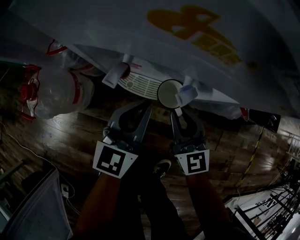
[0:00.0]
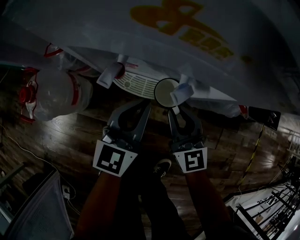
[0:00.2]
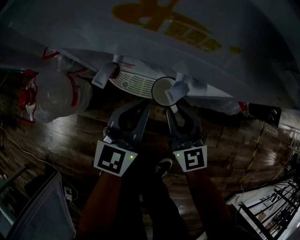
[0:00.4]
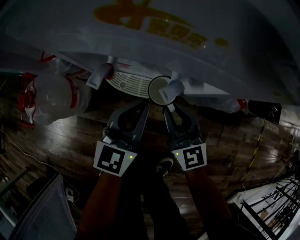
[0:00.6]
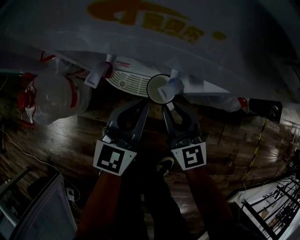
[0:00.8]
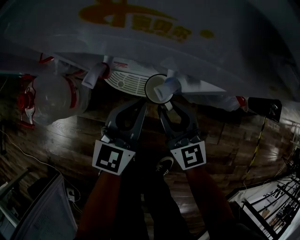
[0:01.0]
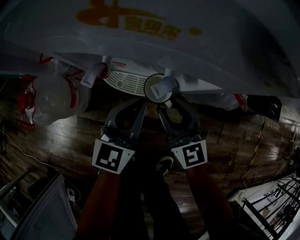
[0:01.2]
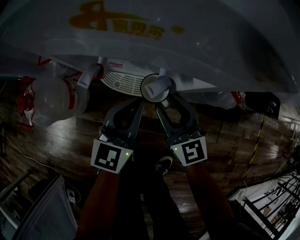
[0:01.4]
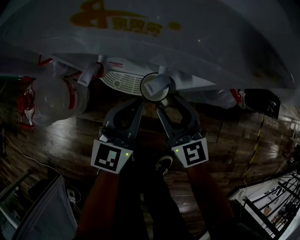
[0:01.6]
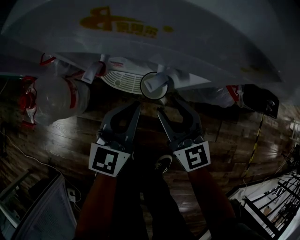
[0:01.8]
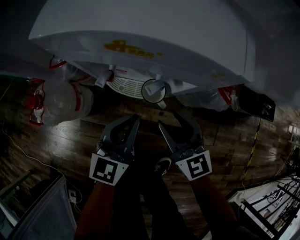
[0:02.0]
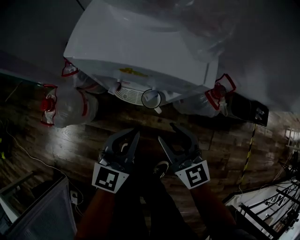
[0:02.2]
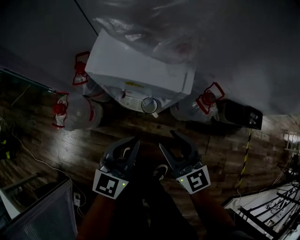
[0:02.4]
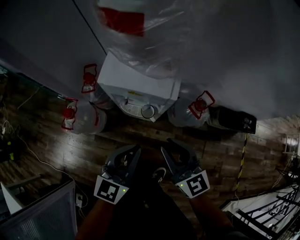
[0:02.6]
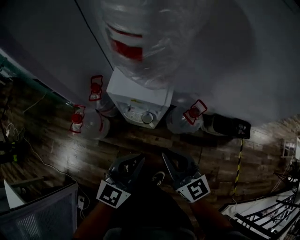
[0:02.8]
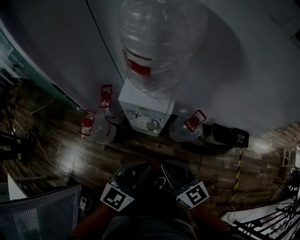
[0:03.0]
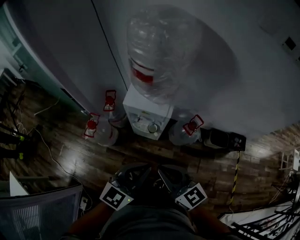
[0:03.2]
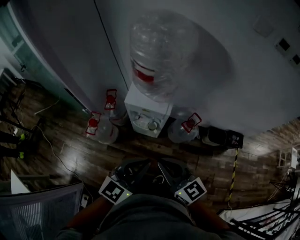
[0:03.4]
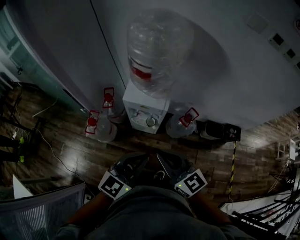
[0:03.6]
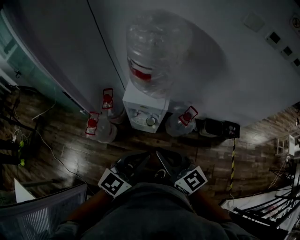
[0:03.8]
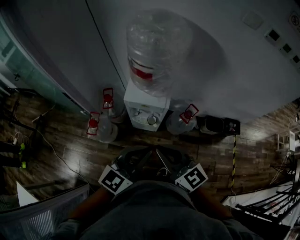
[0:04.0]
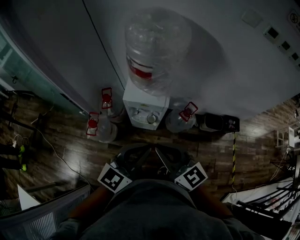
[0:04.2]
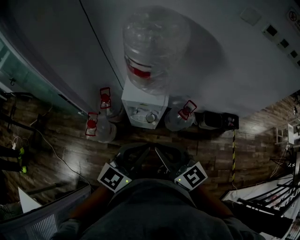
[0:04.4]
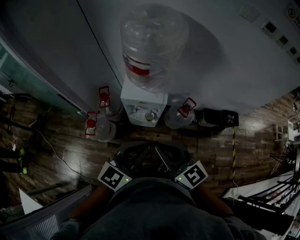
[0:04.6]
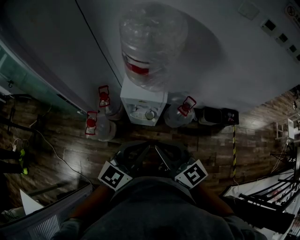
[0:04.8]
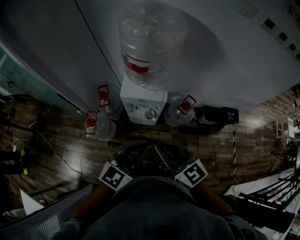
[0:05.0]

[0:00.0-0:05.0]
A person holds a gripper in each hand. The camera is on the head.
0:00.0 to 0:01.6: The right gripper opens up.
0:01.6 to 0:03.4: Both grippers travel together upward and backward, roughly 60 cm. The right gripper closes its fingers.
0:03.4 to 0:05.0: The right gripper changes place by some 5 cm.

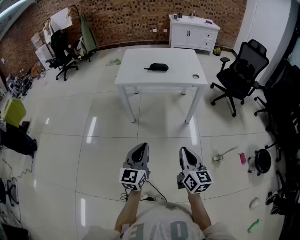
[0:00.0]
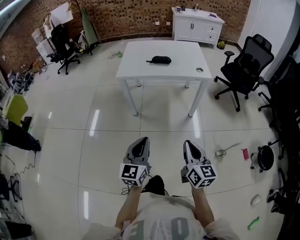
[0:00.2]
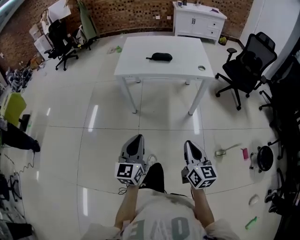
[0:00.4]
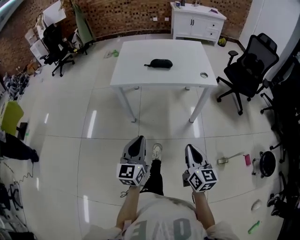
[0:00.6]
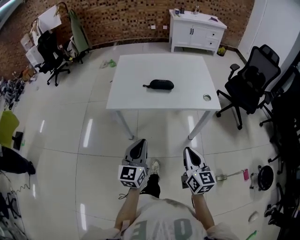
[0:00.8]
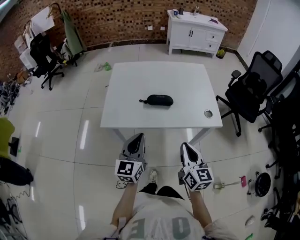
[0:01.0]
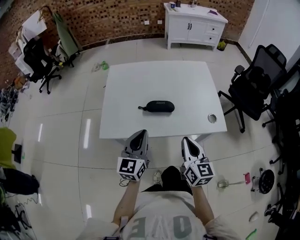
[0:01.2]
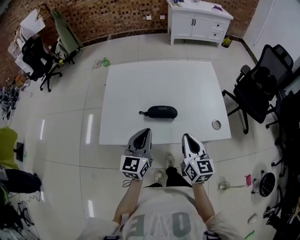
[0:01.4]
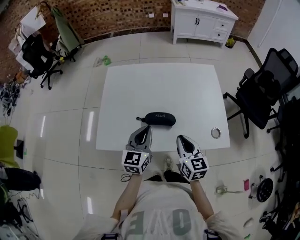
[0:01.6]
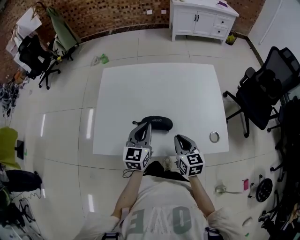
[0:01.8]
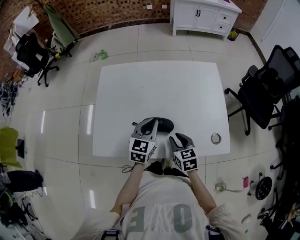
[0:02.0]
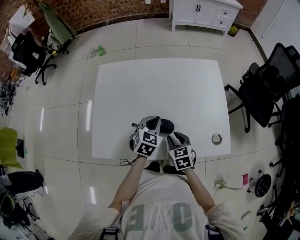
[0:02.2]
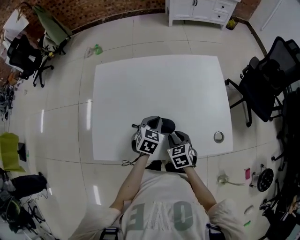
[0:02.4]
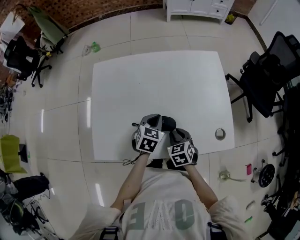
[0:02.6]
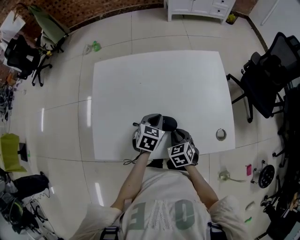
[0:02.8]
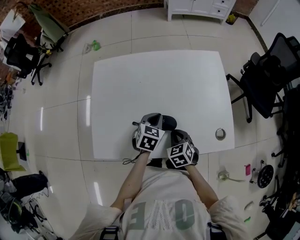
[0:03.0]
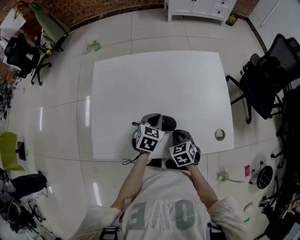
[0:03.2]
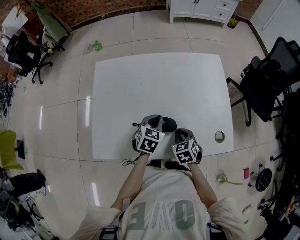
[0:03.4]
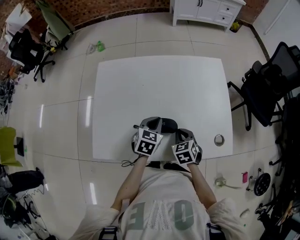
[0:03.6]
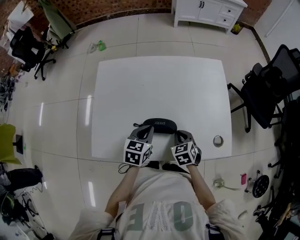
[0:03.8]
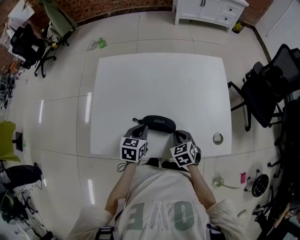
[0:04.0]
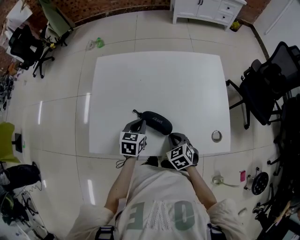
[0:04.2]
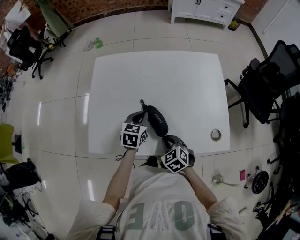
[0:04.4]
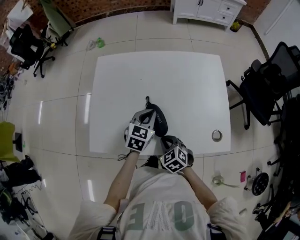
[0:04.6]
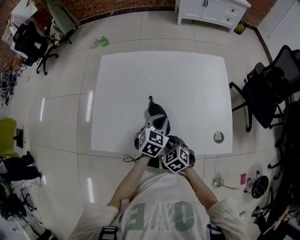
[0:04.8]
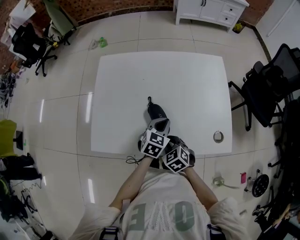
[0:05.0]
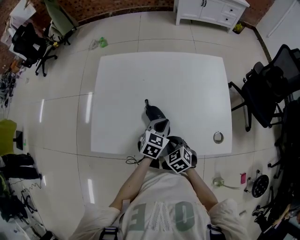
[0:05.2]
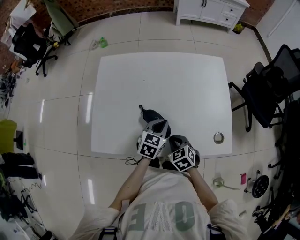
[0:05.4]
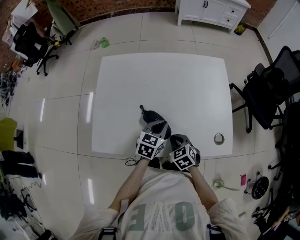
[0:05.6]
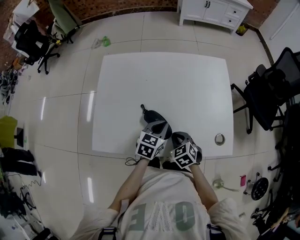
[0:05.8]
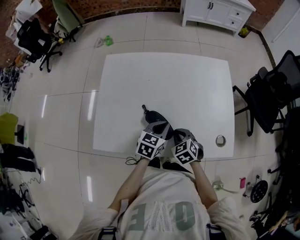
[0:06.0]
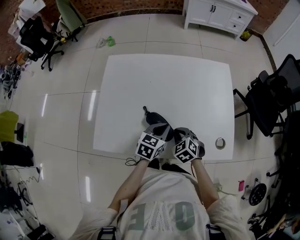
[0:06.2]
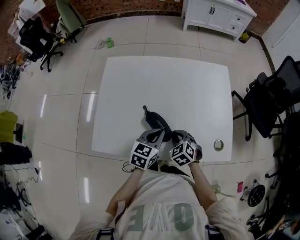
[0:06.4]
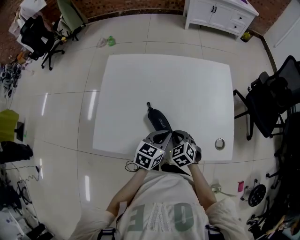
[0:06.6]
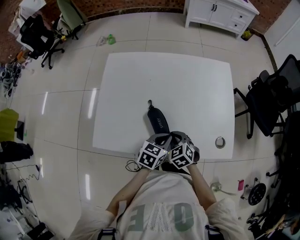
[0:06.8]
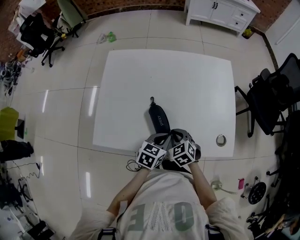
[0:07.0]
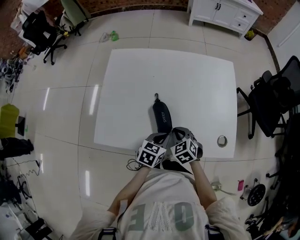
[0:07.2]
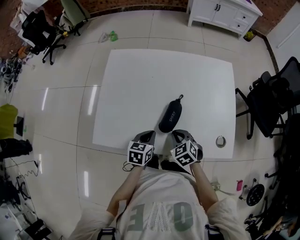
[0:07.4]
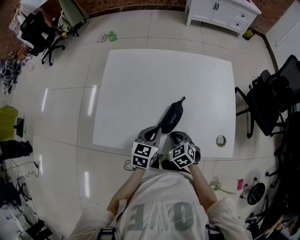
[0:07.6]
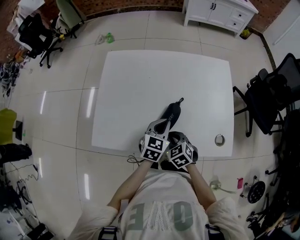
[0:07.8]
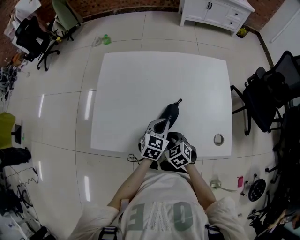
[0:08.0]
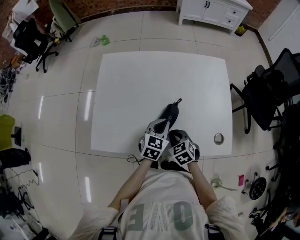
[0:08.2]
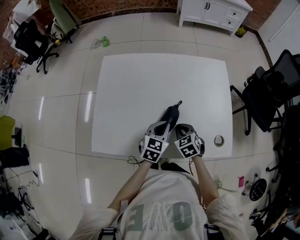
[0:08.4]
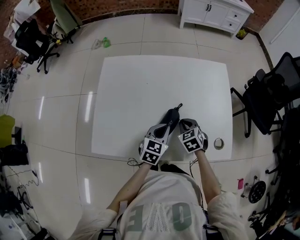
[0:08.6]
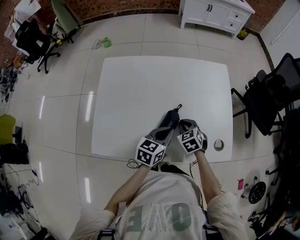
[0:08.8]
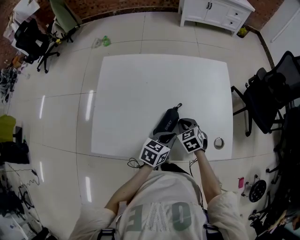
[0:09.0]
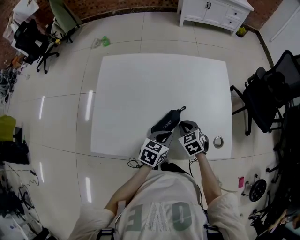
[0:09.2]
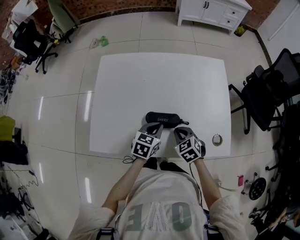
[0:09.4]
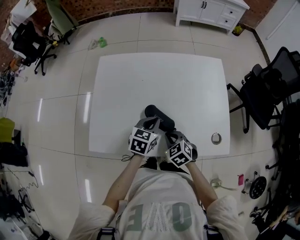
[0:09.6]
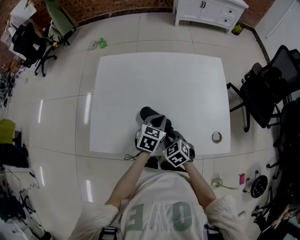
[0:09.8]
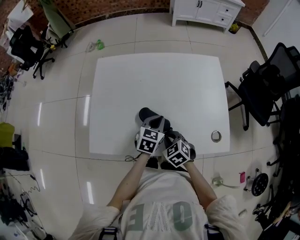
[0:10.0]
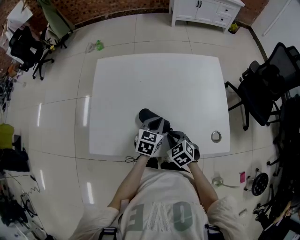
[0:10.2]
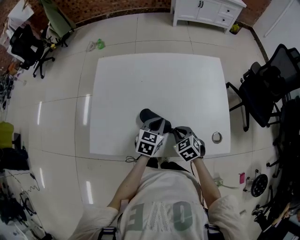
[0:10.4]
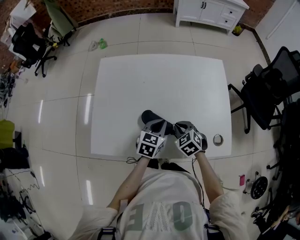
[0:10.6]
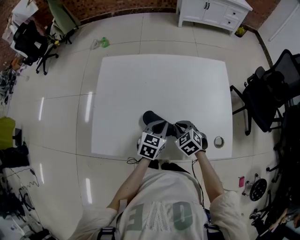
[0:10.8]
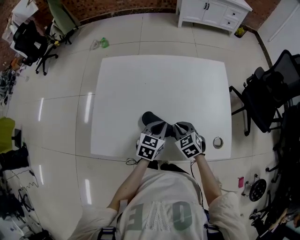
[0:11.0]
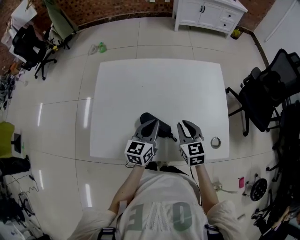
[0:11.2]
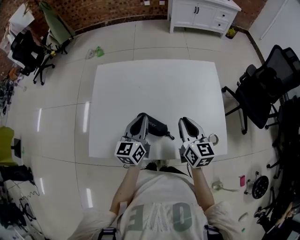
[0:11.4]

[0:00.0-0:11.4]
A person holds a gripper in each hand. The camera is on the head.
0:00.0 to 0:01.4: The pair of grippers is taken forward, about 70 cm.
0:01.4 to 0:02.8: The left gripper moves forward and downward, about 25 cm, and tips its fingers downward by about 40 degrees, while the right gripper shifts roughly 25 cm downward and forward, and tips its fingers downward by roughly 40 degrees.
0:02.8 to 0:04.2: The left gripper moves to the left, roughly 5 cm.
0:04.2 to 0:05.6: The left gripper travels to the right by some 10 cm.
0:05.6 to 0:07.2: The left gripper is displaced backward by approximately 5 cm.
0:07.2 to 0:08.6: The left gripper is displaced forward by about 5 cm, and travels to the left and back again, roughly 5 cm each way. Meanwhile the right gripper goes approximately 10 cm forward and to the right.
0:08.6 to 0:10.0: The right gripper shifts some 10 cm backward and to the left.
0:10.0 to 0:11.4: The left gripper heads upward and to the left, covering some 10 cm, and tips its fingers upward by approximately 30 degrees. The right gripper shifts some 20 cm upward, to the right and forward, and tilts its fingers roughly 30 degrees upward.

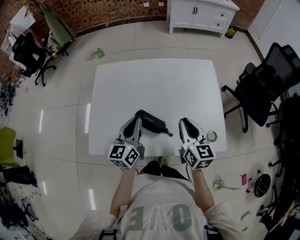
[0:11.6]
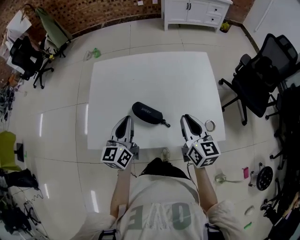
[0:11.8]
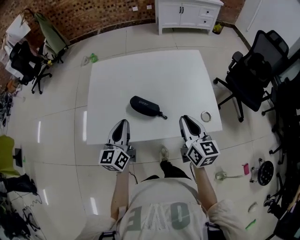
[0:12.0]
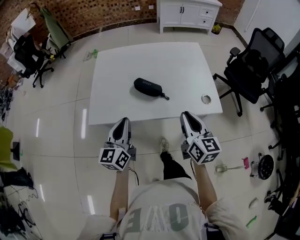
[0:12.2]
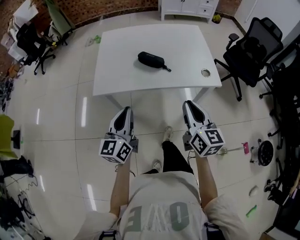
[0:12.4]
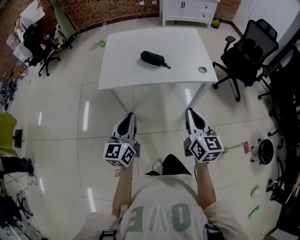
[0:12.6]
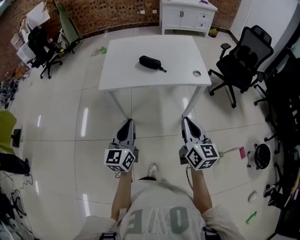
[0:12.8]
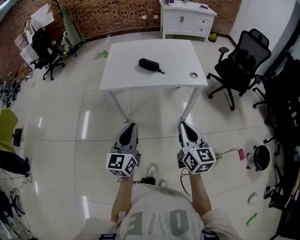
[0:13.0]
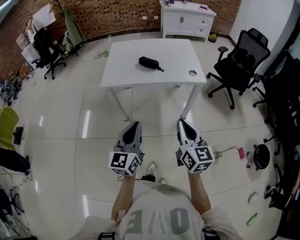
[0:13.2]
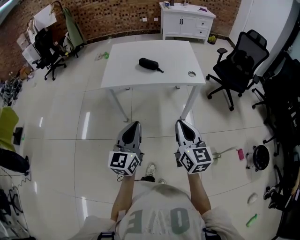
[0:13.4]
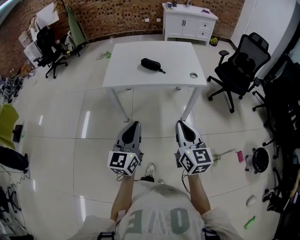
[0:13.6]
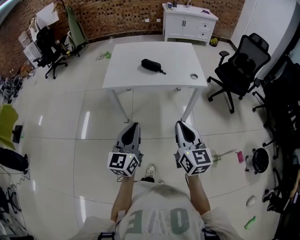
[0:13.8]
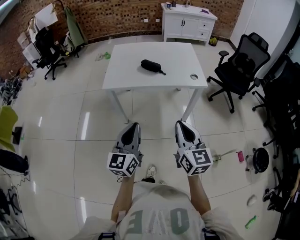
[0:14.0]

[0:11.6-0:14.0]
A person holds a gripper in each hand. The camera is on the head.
0:11.6 to 0:12.8: The two grippers travel together, backward, about 50 cm.
0:12.8 to 0:14.0: The grippers both shift backward by roughly 5 cm.

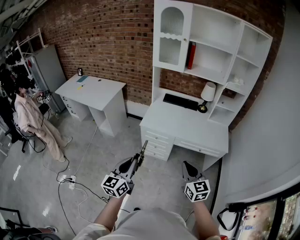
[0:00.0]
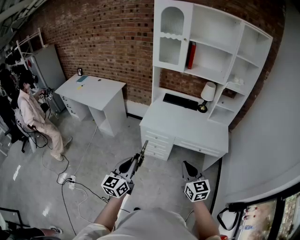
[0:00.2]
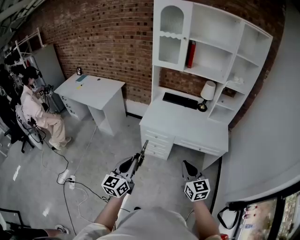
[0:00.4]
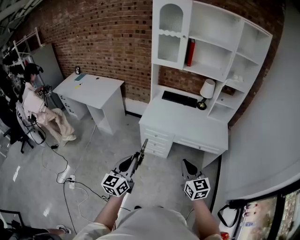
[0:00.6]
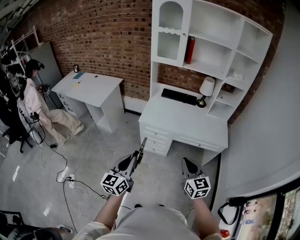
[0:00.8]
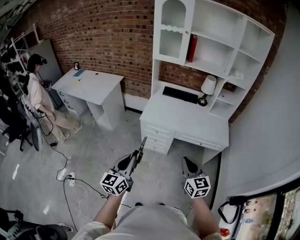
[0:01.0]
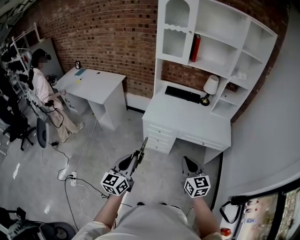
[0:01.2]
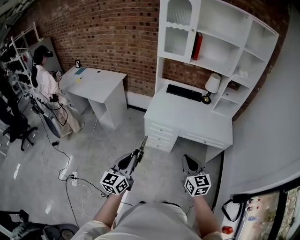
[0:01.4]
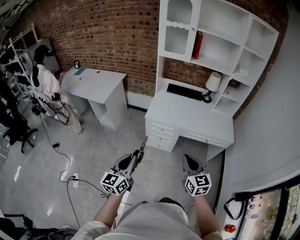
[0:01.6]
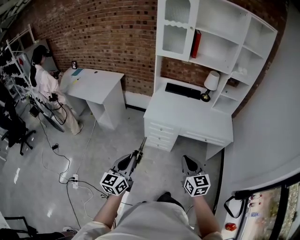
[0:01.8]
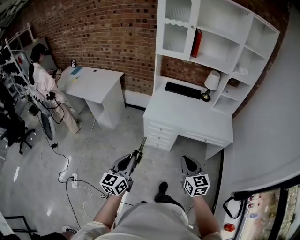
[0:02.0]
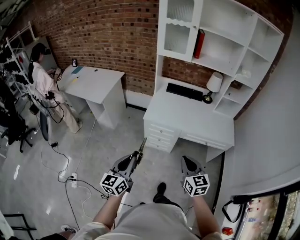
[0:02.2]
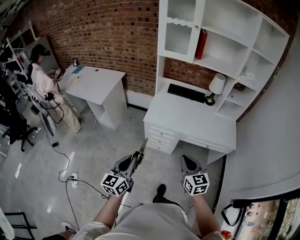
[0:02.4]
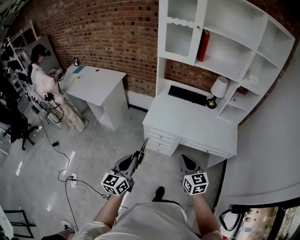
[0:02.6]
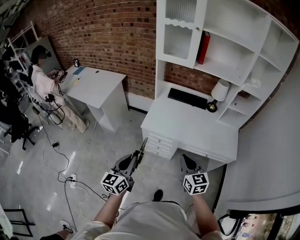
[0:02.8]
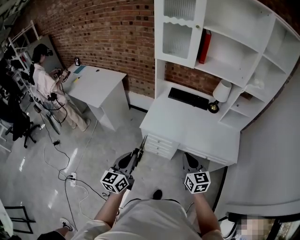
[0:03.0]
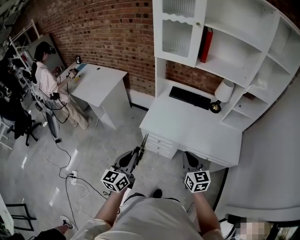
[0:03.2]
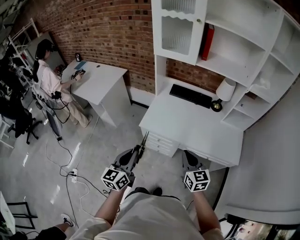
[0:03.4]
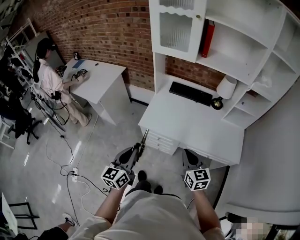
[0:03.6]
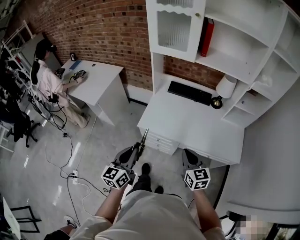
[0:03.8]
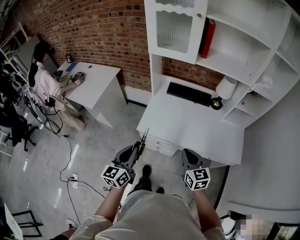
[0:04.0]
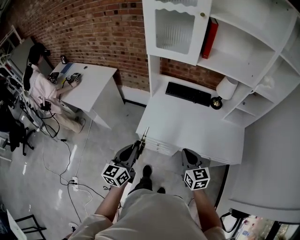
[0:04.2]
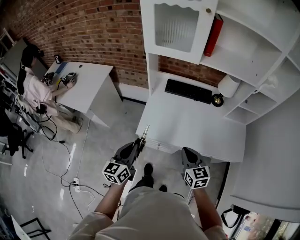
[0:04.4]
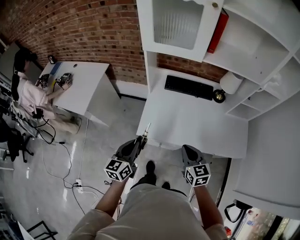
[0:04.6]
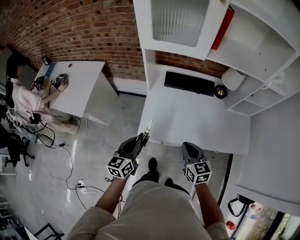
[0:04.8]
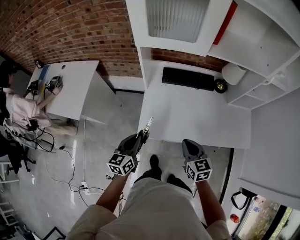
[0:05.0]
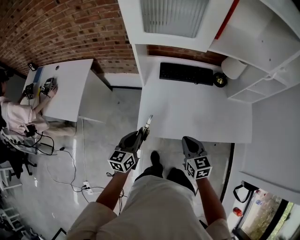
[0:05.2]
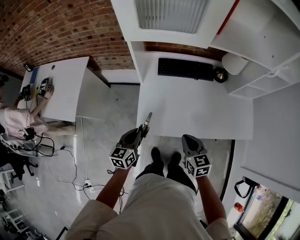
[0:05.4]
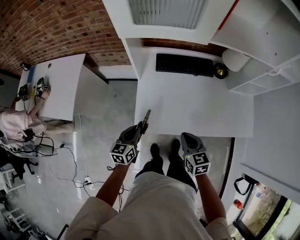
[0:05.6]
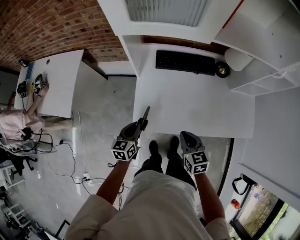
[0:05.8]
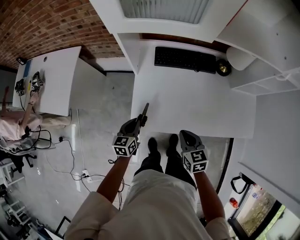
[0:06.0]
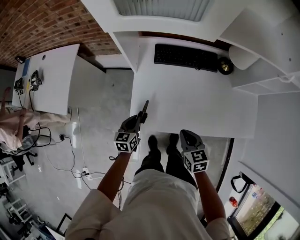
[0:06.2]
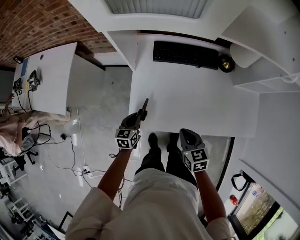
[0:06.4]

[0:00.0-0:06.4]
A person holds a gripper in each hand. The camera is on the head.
0:00.0 to 0:01.6: Both grippers travel together to the left, roughly 10 cm.
0:01.6 to 0:03.2: The left gripper heads forward and to the right, covering approximately 25 cm, while the right gripper is displaced forward by roughly 25 cm.
0:03.2 to 0:04.8: The two grippers go approximately 25 cm forward.
0:04.8 to 0:06.4: The right gripper is displaced downward and forward by about 15 cm; the left gripper is displaced downward and forward by some 25 cm, and changes its angle by roughly 20 degrees.
